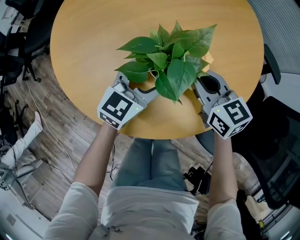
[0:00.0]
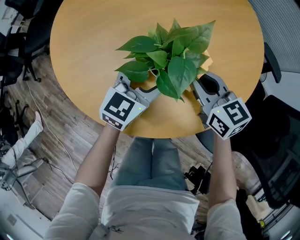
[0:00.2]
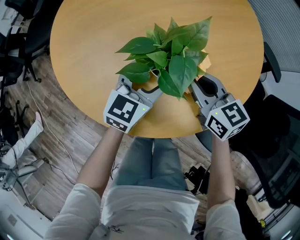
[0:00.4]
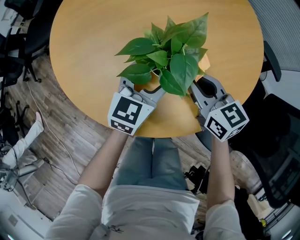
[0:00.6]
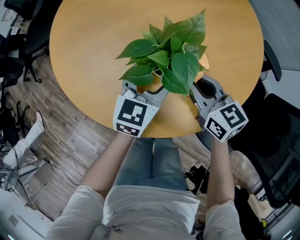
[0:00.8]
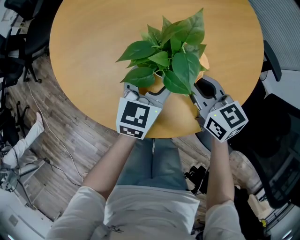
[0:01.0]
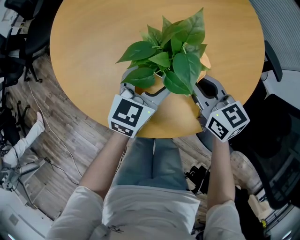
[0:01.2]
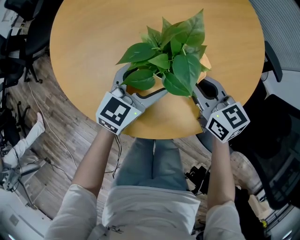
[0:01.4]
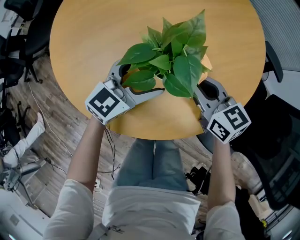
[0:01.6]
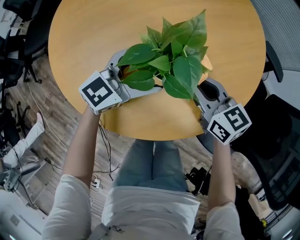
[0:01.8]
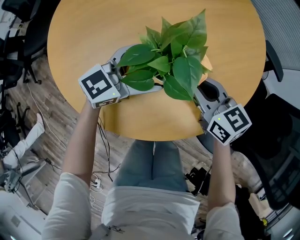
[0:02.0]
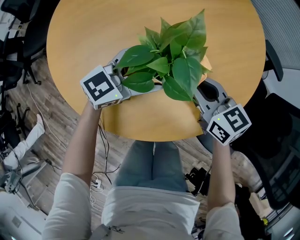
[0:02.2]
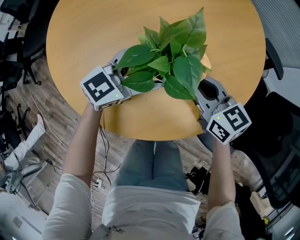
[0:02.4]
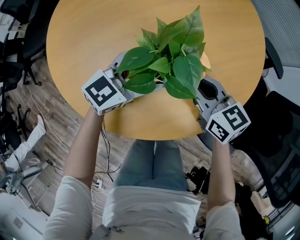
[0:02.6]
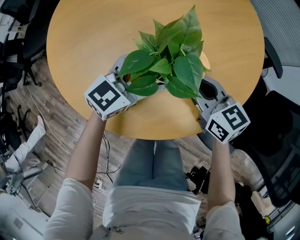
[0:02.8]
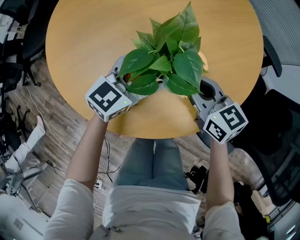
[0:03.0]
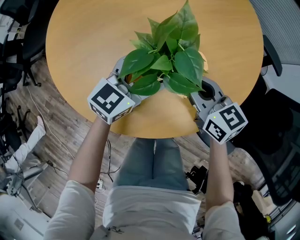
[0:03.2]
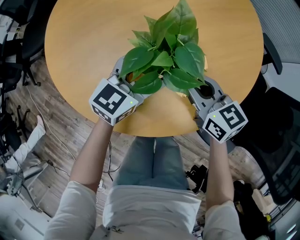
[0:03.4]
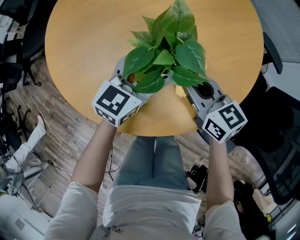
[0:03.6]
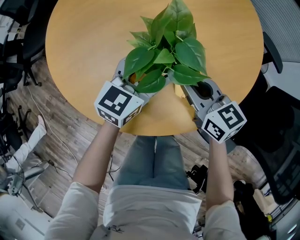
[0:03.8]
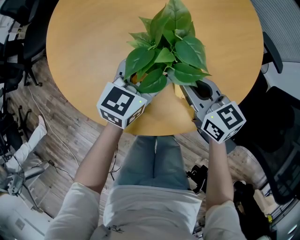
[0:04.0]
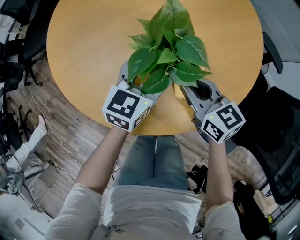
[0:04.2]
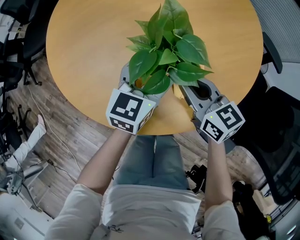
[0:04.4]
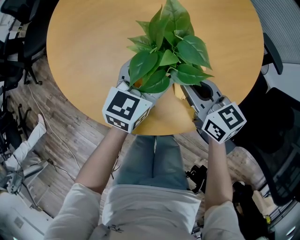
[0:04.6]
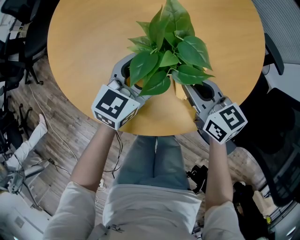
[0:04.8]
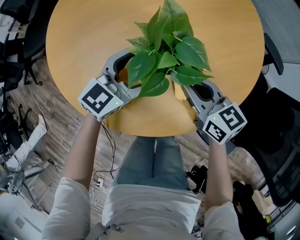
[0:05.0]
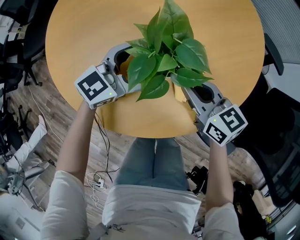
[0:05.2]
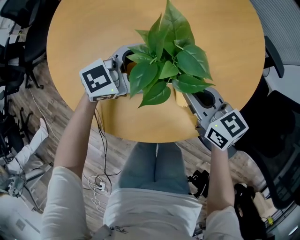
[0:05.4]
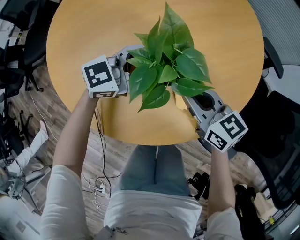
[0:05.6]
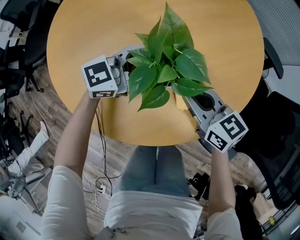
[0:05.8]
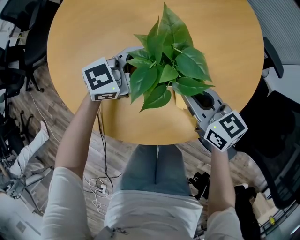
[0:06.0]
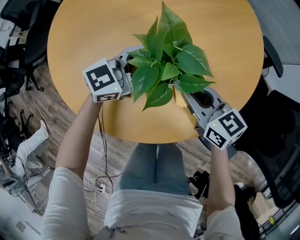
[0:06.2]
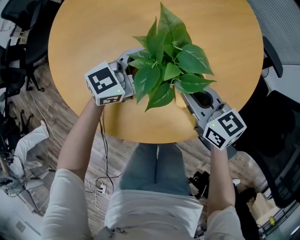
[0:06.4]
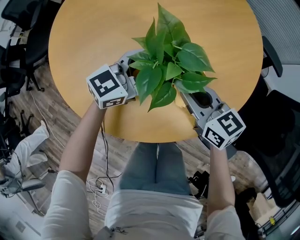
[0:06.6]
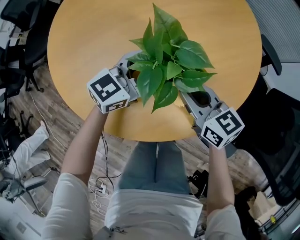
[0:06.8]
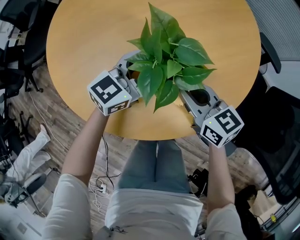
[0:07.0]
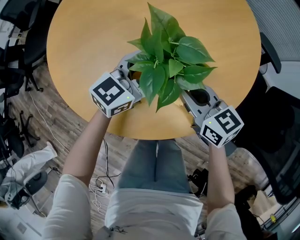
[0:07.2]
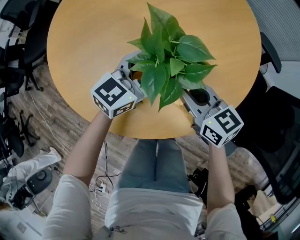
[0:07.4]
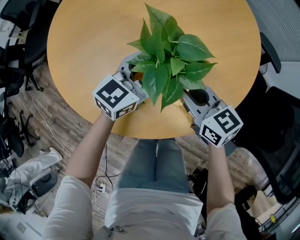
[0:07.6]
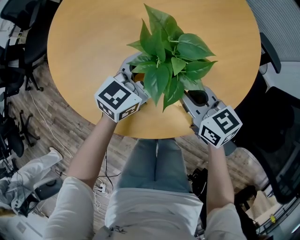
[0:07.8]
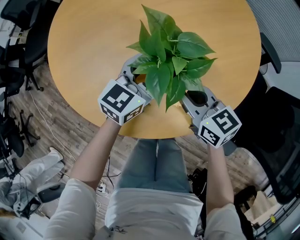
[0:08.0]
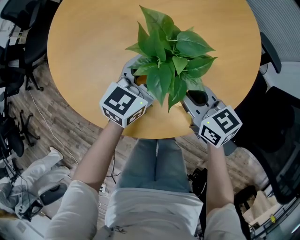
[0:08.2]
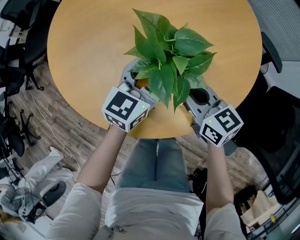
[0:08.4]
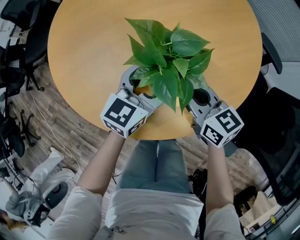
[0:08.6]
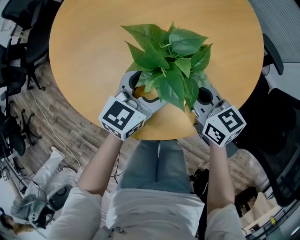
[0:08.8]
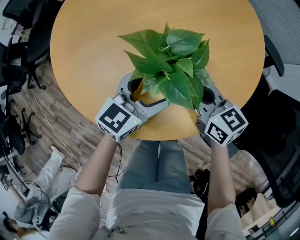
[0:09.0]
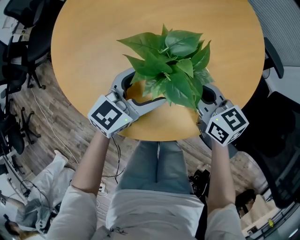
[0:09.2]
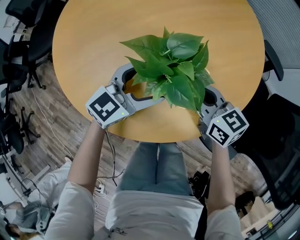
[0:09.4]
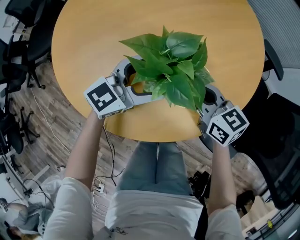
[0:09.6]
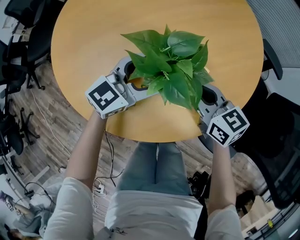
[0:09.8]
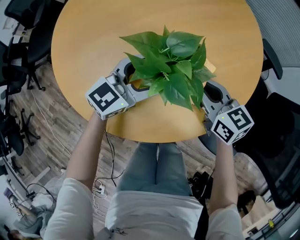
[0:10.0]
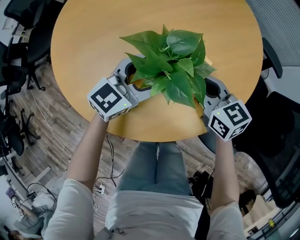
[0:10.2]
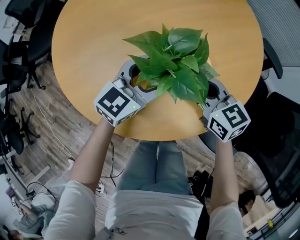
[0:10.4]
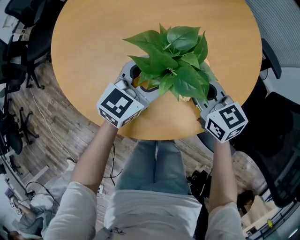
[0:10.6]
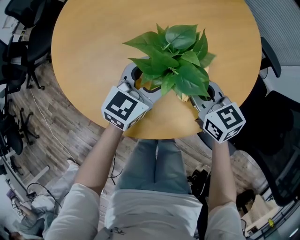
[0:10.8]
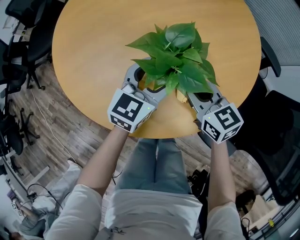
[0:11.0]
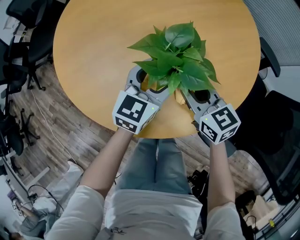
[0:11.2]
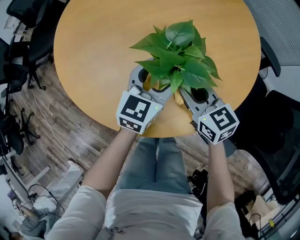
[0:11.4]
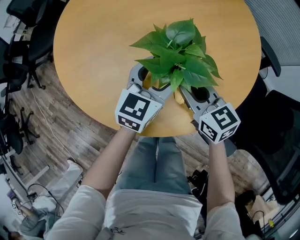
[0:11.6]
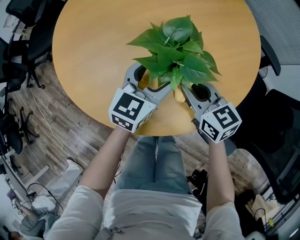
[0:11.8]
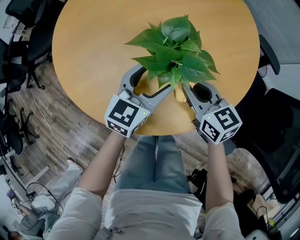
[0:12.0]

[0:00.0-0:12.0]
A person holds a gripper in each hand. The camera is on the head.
0:00.0 to 0:01.6: The grippers make only small movements.
0:01.6 to 0:03.0: The grippers make only small movements.
0:03.0 to 0:04.4: The left gripper rotates about 20 degrees.
0:04.4 to 0:06.0: The left gripper turns by roughly 40 degrees.
0:06.0 to 0:07.6: The left gripper swivels about 20 degrees.
0:07.6 to 0:12.0: The grippers make only small movements.

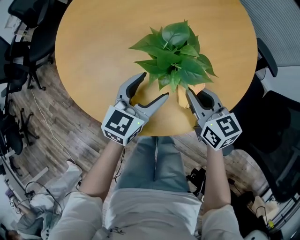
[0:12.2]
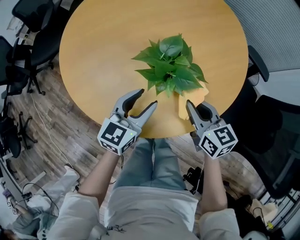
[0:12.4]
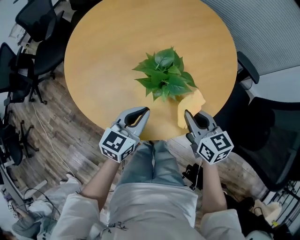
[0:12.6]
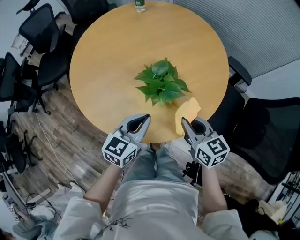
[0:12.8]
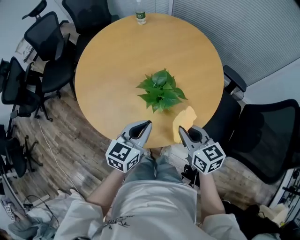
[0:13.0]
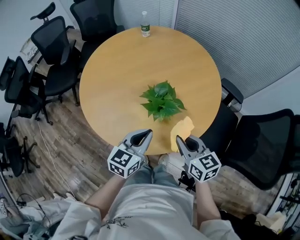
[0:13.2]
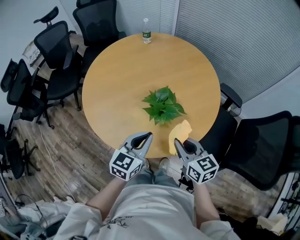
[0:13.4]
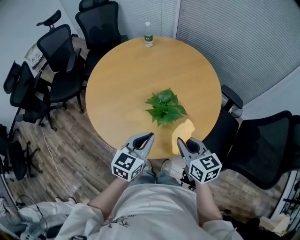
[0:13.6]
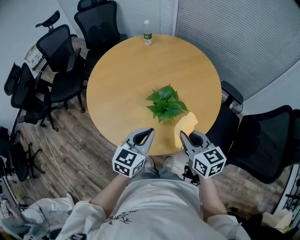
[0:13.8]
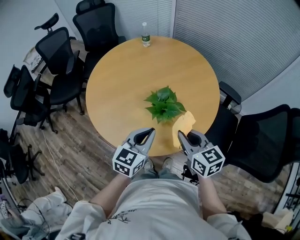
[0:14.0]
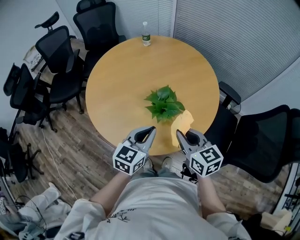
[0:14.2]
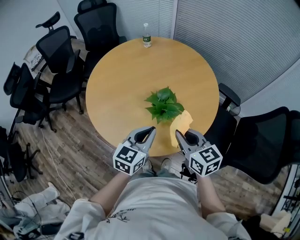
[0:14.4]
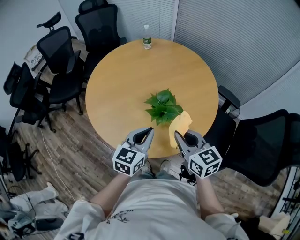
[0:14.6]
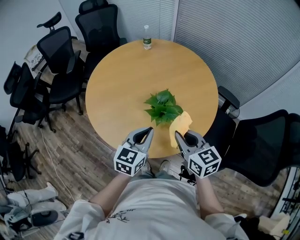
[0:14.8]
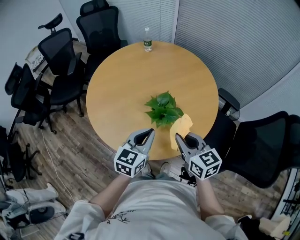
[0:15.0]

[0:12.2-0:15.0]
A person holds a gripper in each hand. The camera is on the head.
0:12.2 to 0:13.6: Both grippers move upward and backward, some 20 cm. The left gripper closes up.
0:13.6 to 0:15.0: The grippers move only a little.

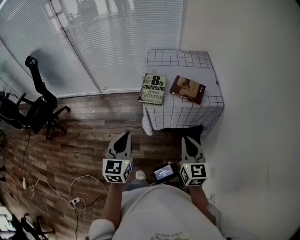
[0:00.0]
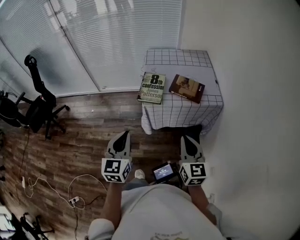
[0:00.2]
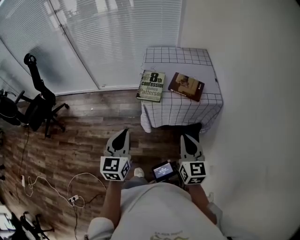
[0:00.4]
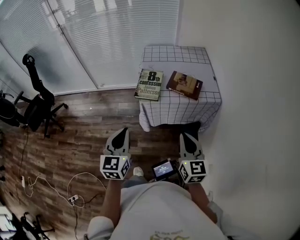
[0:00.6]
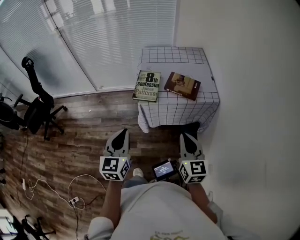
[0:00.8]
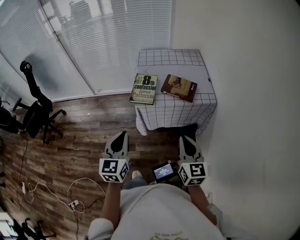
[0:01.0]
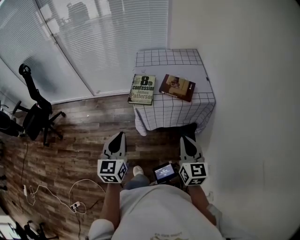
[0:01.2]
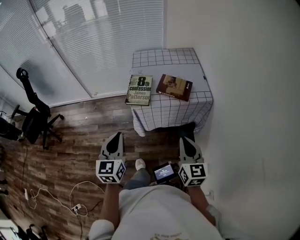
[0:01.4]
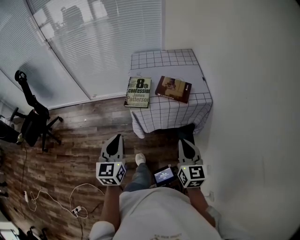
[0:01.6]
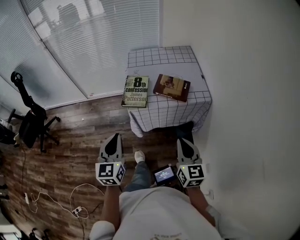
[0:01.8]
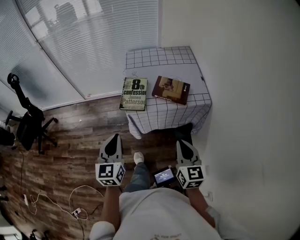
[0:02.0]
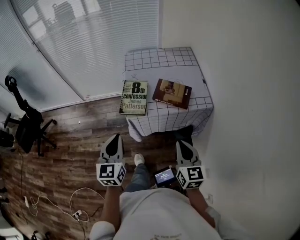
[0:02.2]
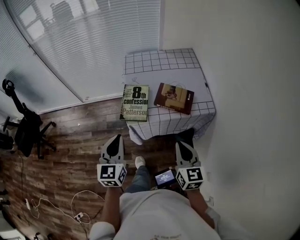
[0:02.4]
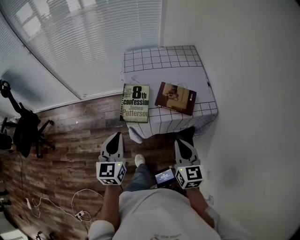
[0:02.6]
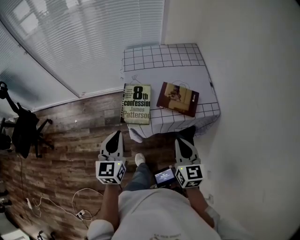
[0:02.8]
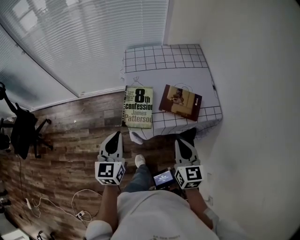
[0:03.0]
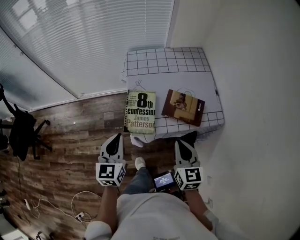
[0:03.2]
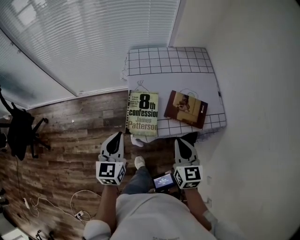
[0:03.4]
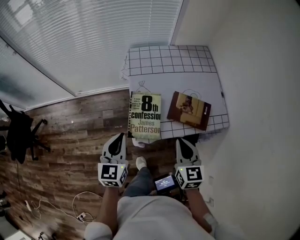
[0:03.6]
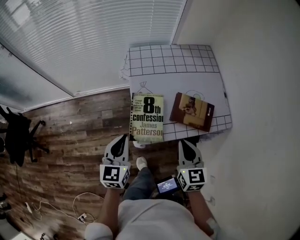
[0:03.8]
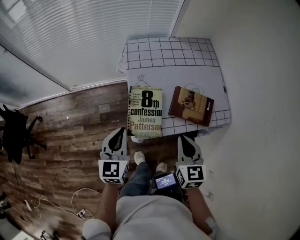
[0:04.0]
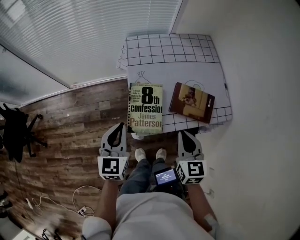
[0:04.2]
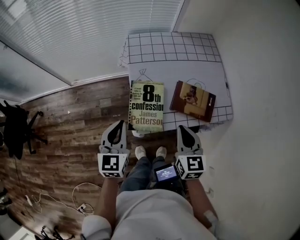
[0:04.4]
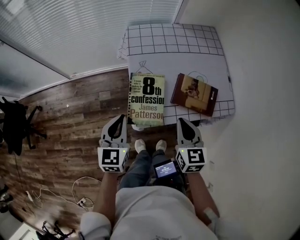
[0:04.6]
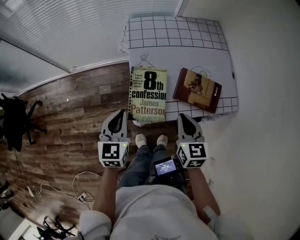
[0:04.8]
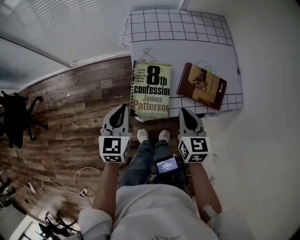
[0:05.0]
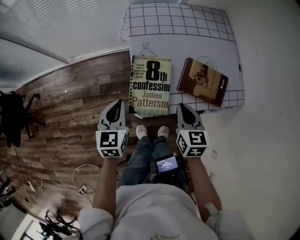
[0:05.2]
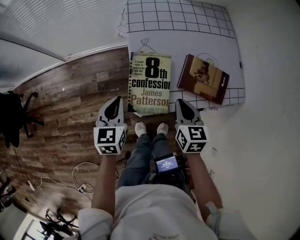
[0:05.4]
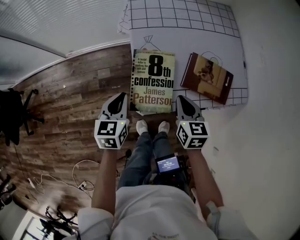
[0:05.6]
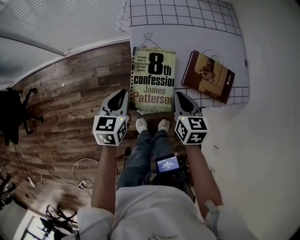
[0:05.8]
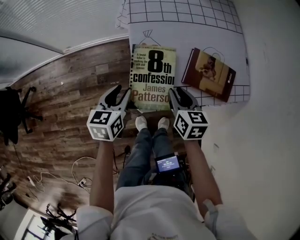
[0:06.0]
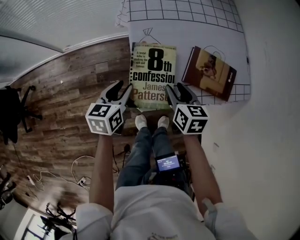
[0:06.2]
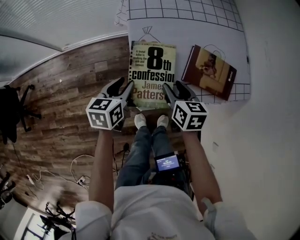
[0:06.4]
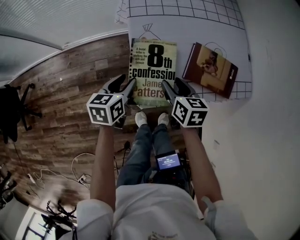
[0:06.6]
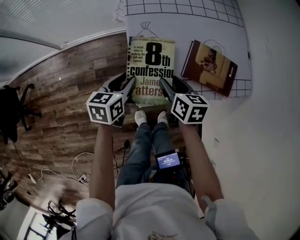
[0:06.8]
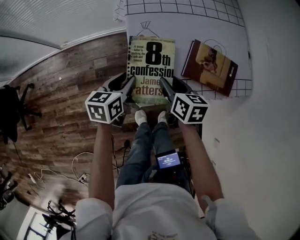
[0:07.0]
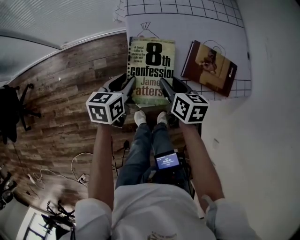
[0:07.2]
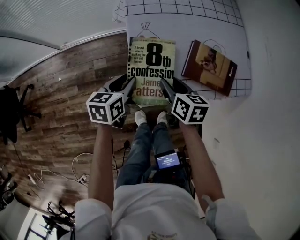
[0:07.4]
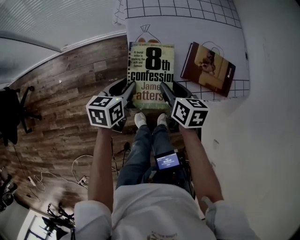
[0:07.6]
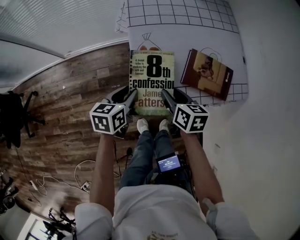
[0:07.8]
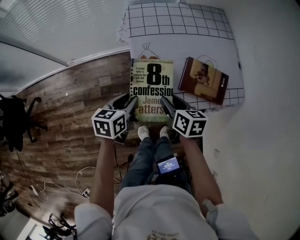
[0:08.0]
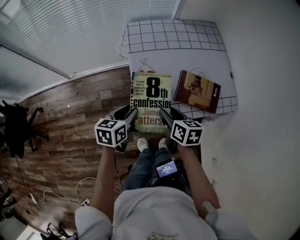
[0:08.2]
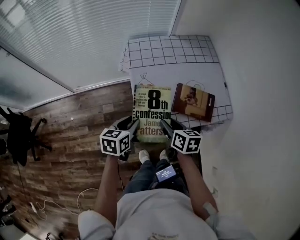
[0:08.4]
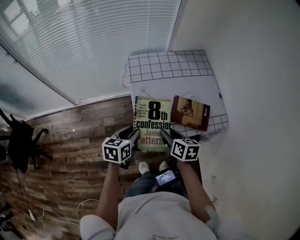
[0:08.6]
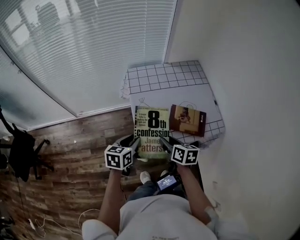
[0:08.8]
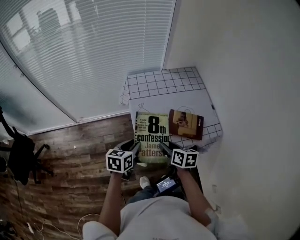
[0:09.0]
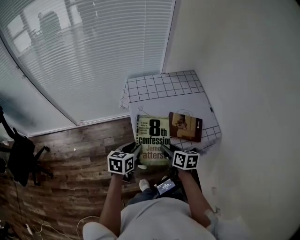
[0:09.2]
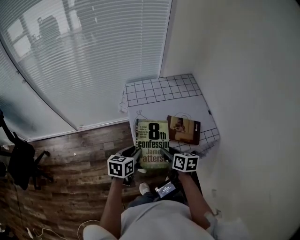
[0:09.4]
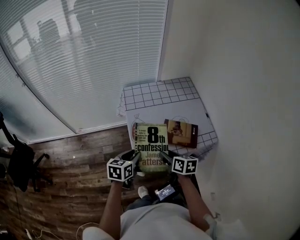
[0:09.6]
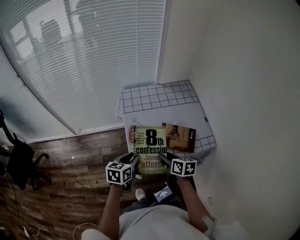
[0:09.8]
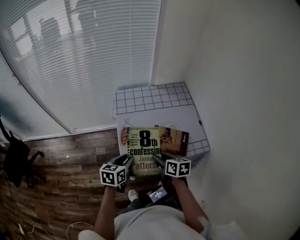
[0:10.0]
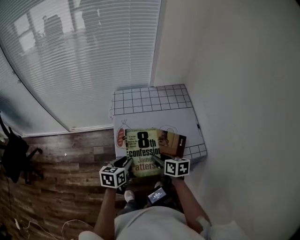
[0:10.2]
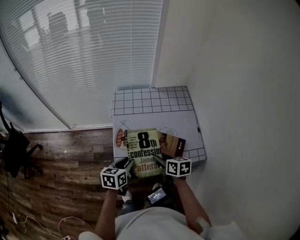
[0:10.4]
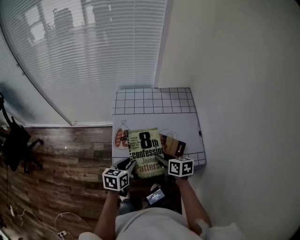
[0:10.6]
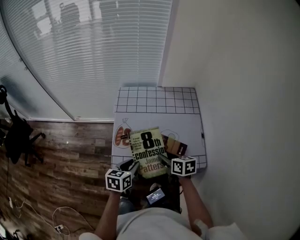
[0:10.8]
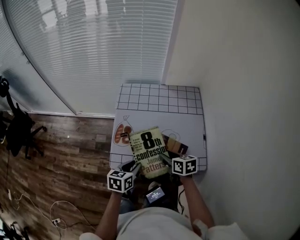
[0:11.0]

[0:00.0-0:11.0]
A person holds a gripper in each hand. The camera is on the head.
0:00.0 to 0:01.6: The right gripper is displaced to the right by about 5 cm.
0:01.6 to 0:03.2: Both grippers travel together forward, about 25 cm.
0:03.2 to 0:04.8: The left gripper goes roughly 10 cm downward and forward. The right gripper heads forward and downward, covering approximately 10 cm.
0:04.8 to 0:06.2: The left gripper is displaced downward by roughly 10 cm, rotates approximately 20 degrees, and opens. The right gripper travels downward and forward by some 10 cm, and opens up.
0:06.2 to 0:07.8: The grippers move only a little.
0:07.8 to 0:09.4: The left gripper moves upward, approximately 15 cm. The right gripper heads upward and backward, covering some 10 cm.
0:09.4 to 0:11.0: The left gripper heads to the right, covering about 15 cm, while the right gripper is displaced to the right and forward by some 15 cm, and swivels approximately 20 degrees.
